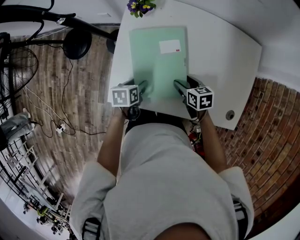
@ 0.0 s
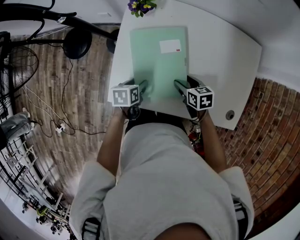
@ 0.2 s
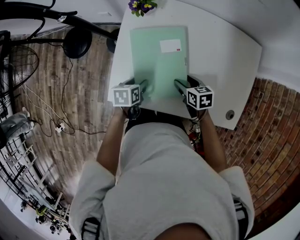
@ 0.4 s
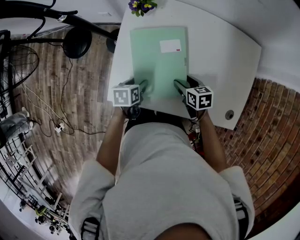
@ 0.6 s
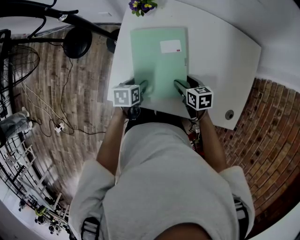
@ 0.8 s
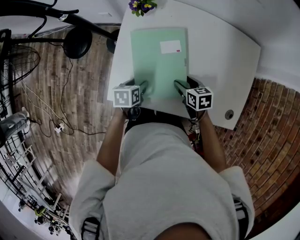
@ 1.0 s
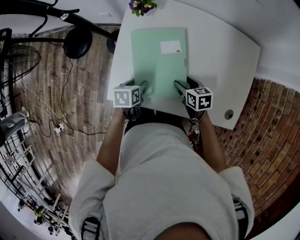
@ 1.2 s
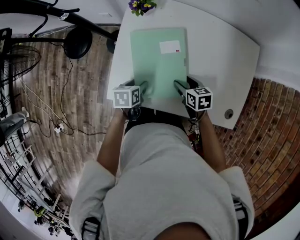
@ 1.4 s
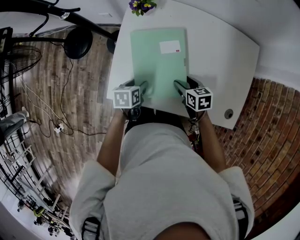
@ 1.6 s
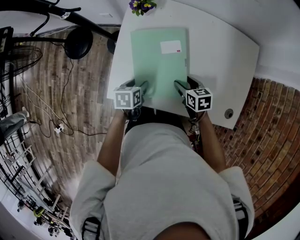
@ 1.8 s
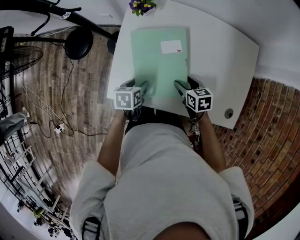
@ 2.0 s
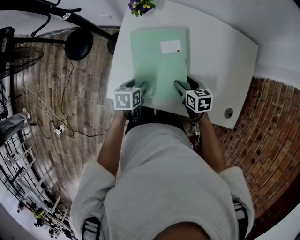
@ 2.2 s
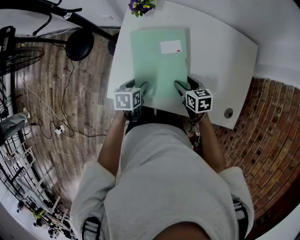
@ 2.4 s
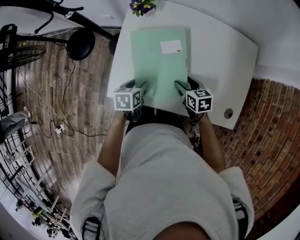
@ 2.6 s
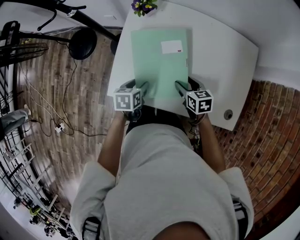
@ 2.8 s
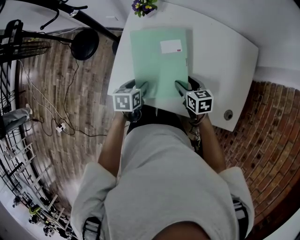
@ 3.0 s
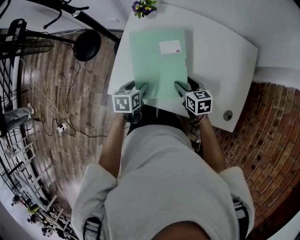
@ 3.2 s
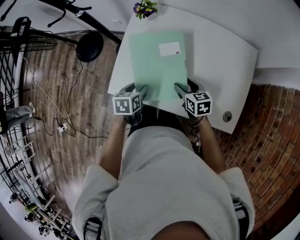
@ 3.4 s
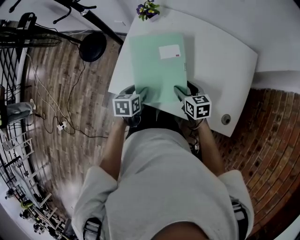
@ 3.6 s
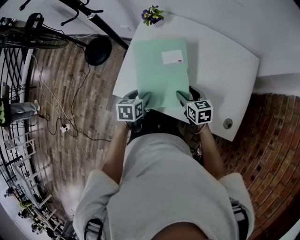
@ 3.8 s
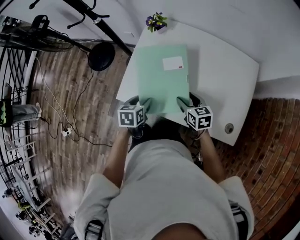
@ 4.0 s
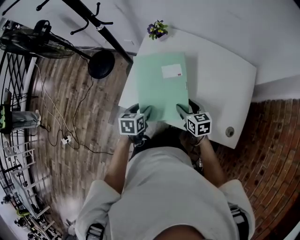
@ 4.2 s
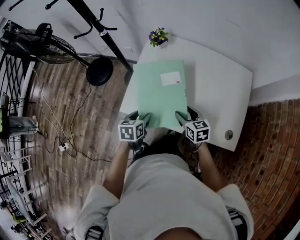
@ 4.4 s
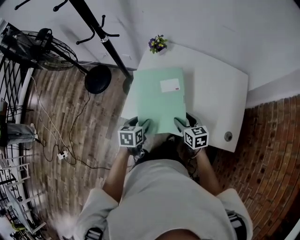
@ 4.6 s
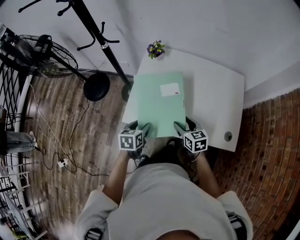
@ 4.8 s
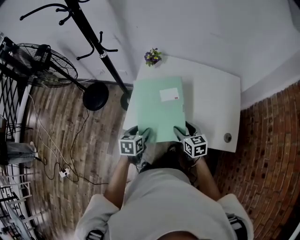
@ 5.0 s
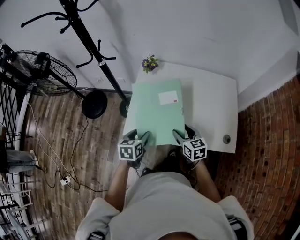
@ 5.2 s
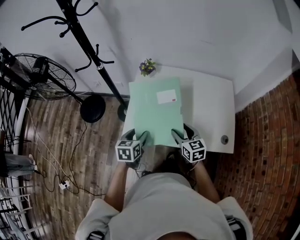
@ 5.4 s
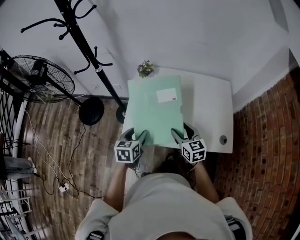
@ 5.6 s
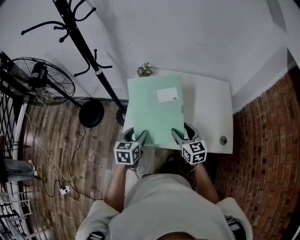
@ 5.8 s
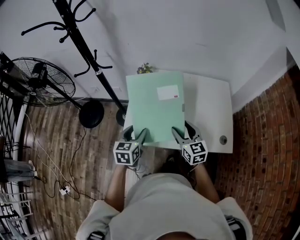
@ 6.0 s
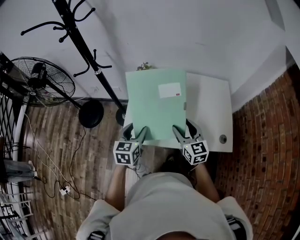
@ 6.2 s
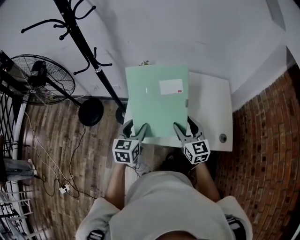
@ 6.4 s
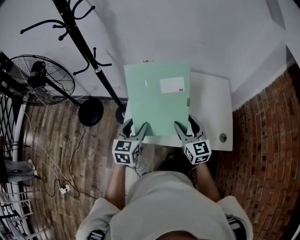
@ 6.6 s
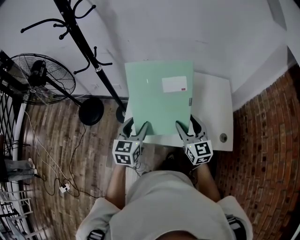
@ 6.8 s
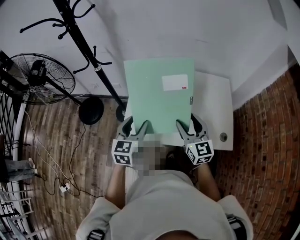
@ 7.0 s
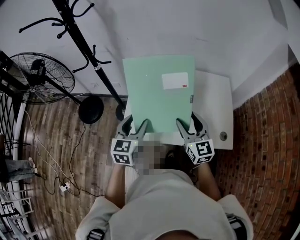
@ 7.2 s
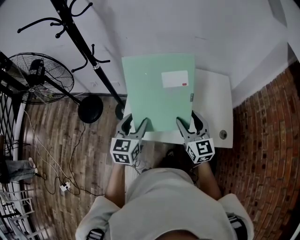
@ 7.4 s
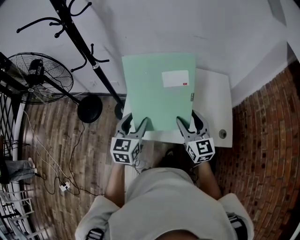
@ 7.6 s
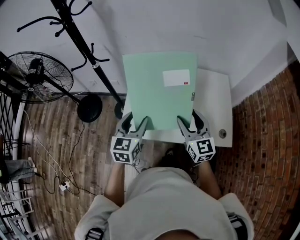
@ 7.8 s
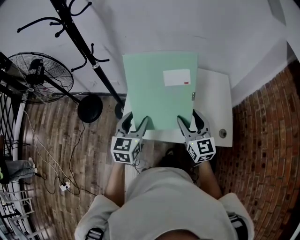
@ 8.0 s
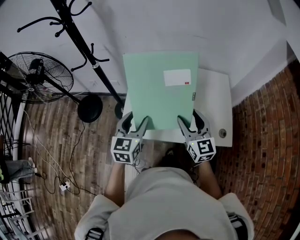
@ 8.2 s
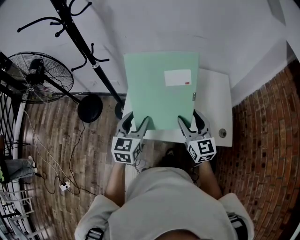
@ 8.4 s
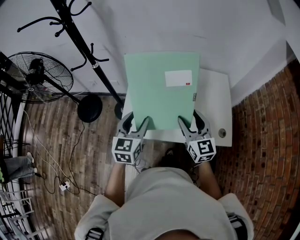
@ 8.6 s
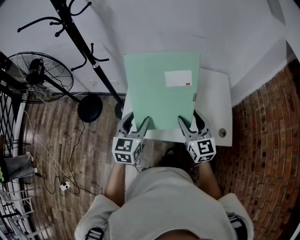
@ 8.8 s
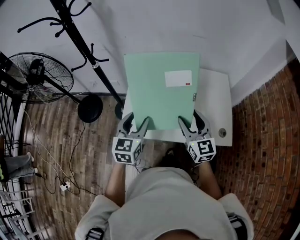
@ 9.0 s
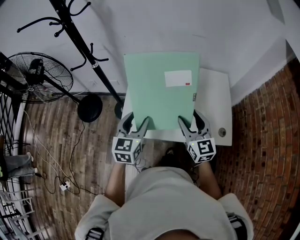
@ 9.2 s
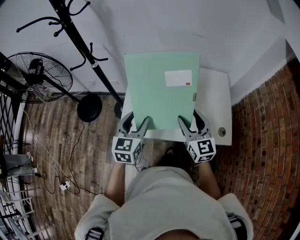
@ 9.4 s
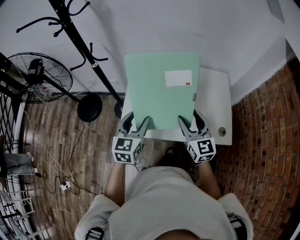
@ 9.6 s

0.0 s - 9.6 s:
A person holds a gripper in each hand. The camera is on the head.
0.0 s - 1.6 s: There are only small adjustments of the grippers.
1.6 s - 3.2 s: The left gripper shifts by approximately 5 cm.
3.2 s - 4.8 s: The right gripper shifts approximately 15 cm backward, upward and to the left. The left gripper is displaced backward, to the left and upward by roughly 10 cm.
4.8 s - 6.4 s: The two grippers go roughly 15 cm upward. The right gripper swivels about 30 degrees, while the left gripper swivels approximately 30 degrees.
6.4 s - 8.0 s: The grippers stay close to where they were, moving slightly.
8.0 s - 9.6 s: Neither gripper changes place.

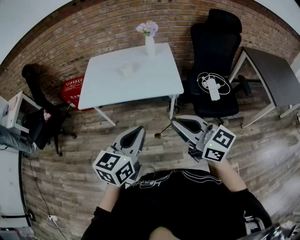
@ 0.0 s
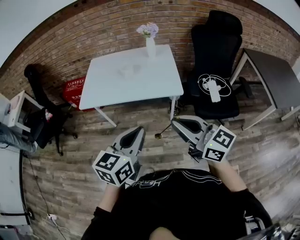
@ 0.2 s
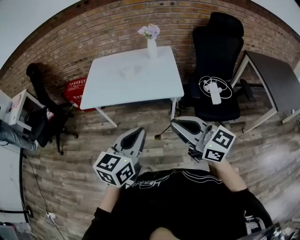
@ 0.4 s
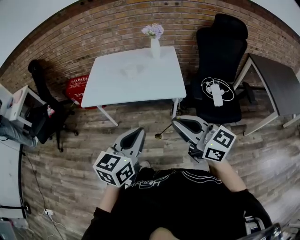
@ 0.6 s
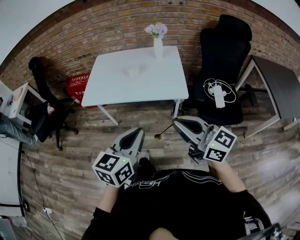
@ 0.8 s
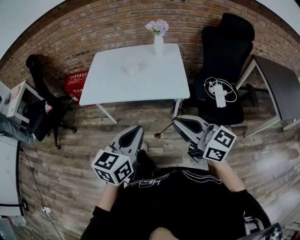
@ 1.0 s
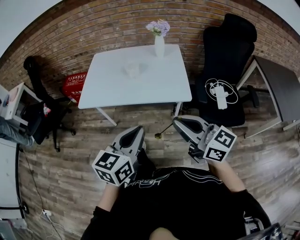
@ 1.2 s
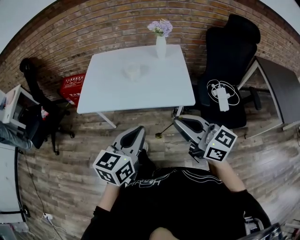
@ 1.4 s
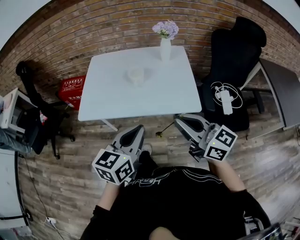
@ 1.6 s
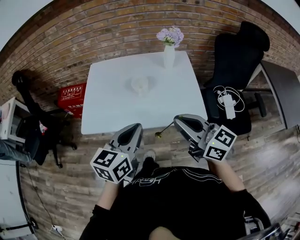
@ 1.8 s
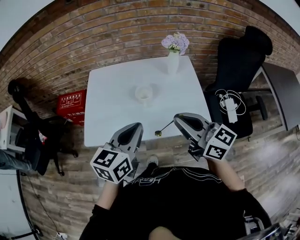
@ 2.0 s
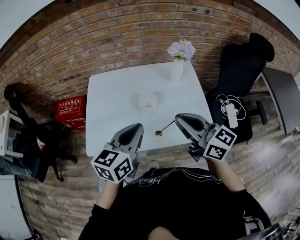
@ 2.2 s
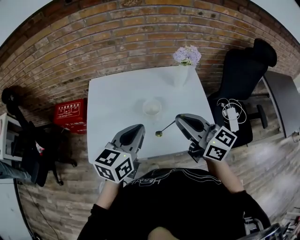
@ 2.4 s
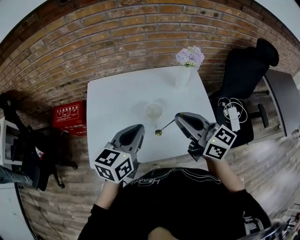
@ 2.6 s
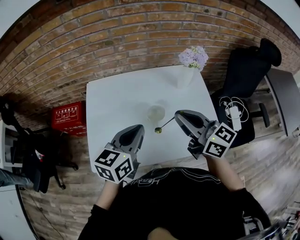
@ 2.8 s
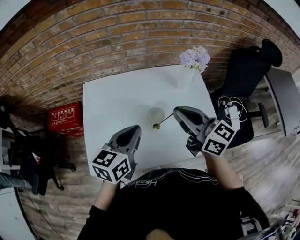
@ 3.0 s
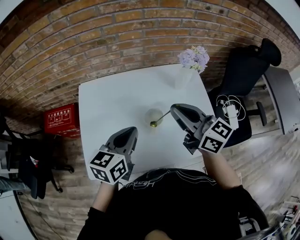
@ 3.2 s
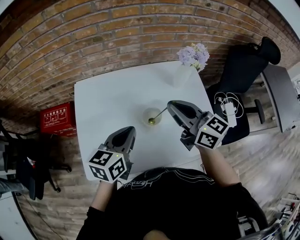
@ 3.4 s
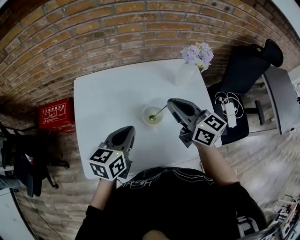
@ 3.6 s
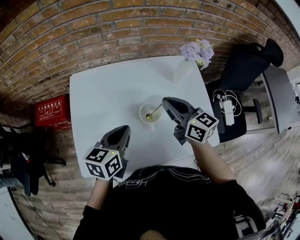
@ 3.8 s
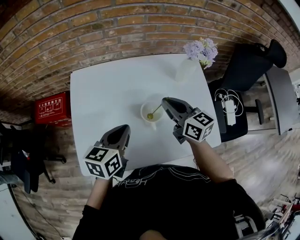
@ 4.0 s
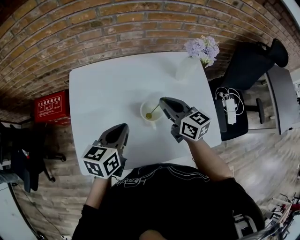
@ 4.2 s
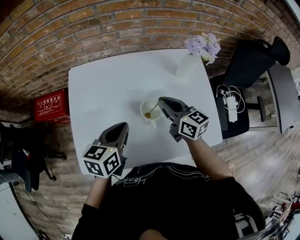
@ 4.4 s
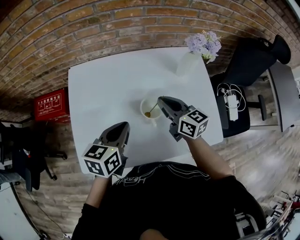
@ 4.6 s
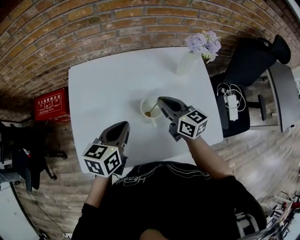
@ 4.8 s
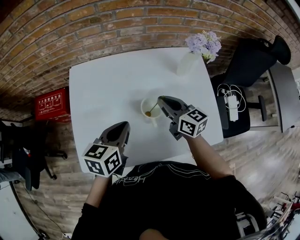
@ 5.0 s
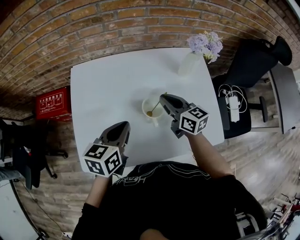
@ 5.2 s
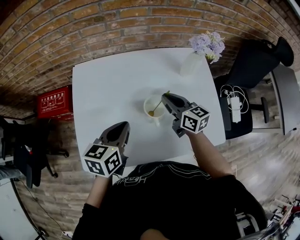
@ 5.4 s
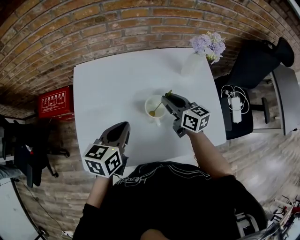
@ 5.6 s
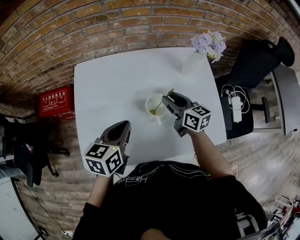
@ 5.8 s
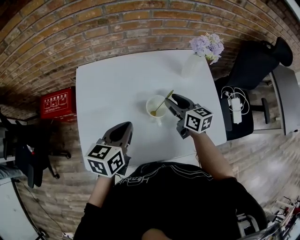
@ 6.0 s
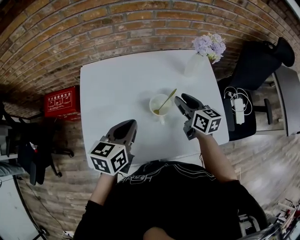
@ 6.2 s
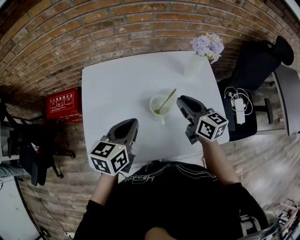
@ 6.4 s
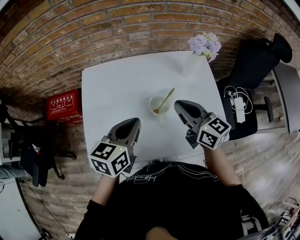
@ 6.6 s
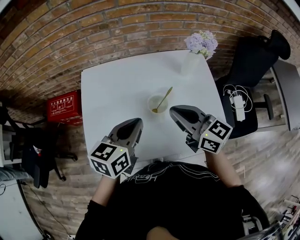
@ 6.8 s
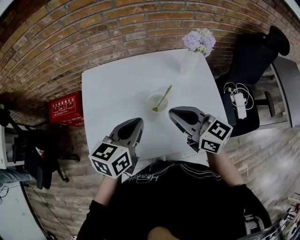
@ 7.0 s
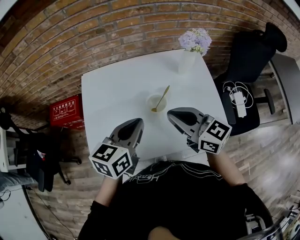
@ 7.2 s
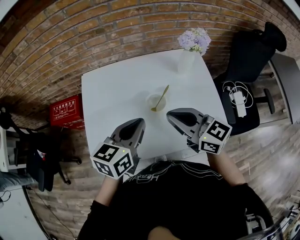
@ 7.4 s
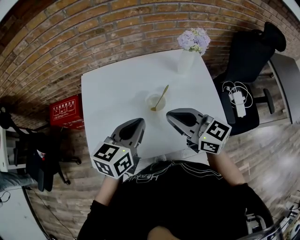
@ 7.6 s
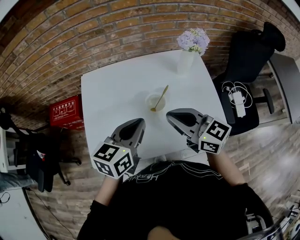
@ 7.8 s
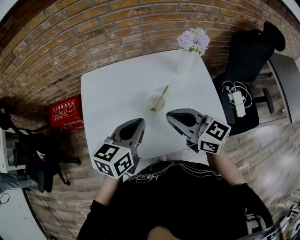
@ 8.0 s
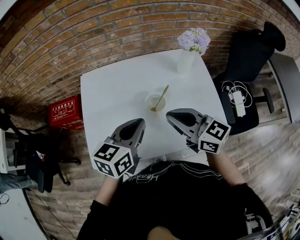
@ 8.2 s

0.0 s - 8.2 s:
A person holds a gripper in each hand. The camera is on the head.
0.0 s - 1.6 s: Both grippers travel together forward, roughly 20 cm.
1.6 s - 3.2 s: The two grippers go approximately 35 cm forward.
3.2 s - 5.0 s: The right gripper heads downward, covering approximately 15 cm. Meanwhile the left gripper travels downward by approximately 10 cm.
5.0 s - 6.6 s: The left gripper travels upward by approximately 5 cm. The right gripper moves upward and backward, some 10 cm, and opens, then closes once more.
6.6 s - 8.2 s: The right gripper is displaced backward by roughly 5 cm.

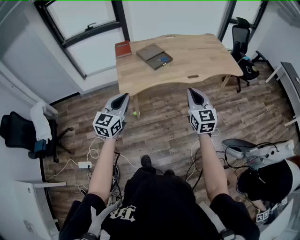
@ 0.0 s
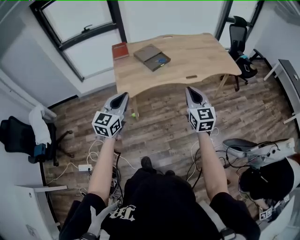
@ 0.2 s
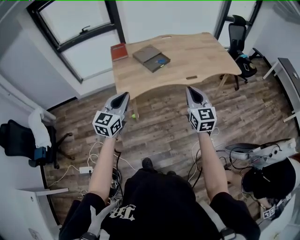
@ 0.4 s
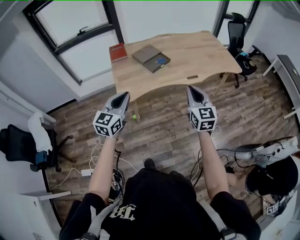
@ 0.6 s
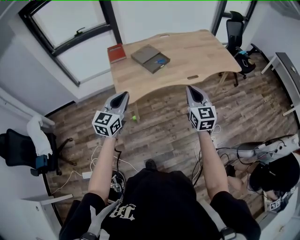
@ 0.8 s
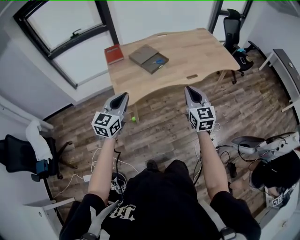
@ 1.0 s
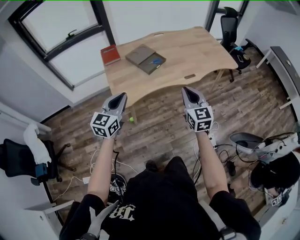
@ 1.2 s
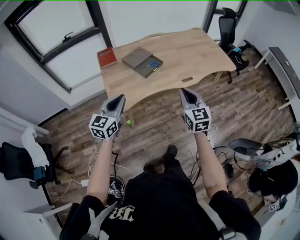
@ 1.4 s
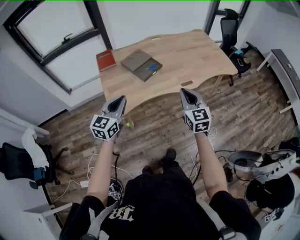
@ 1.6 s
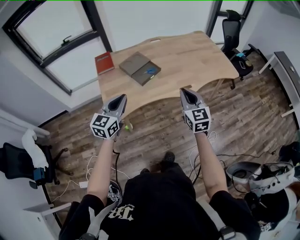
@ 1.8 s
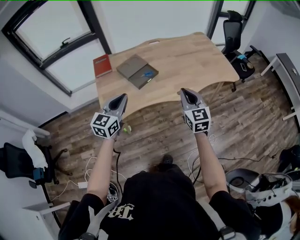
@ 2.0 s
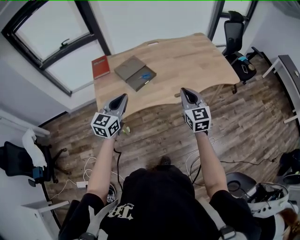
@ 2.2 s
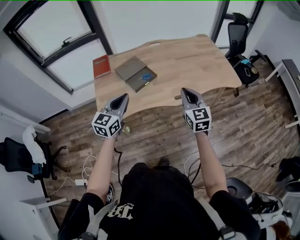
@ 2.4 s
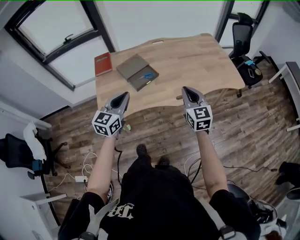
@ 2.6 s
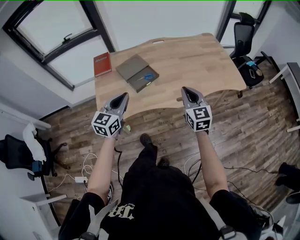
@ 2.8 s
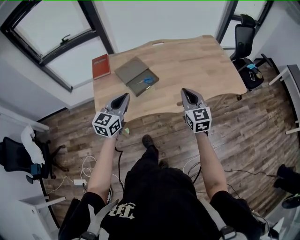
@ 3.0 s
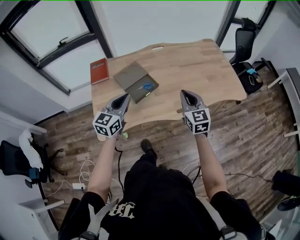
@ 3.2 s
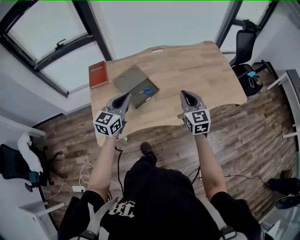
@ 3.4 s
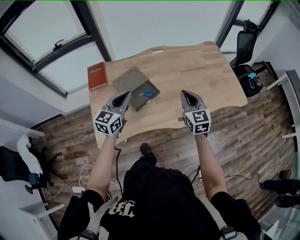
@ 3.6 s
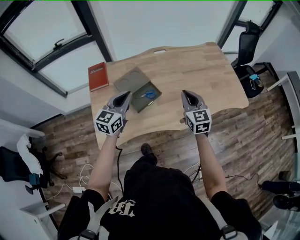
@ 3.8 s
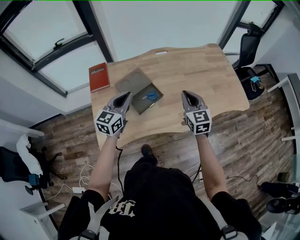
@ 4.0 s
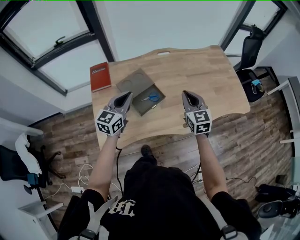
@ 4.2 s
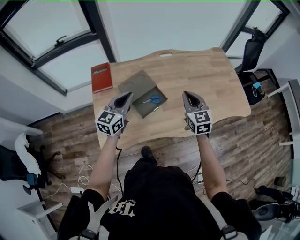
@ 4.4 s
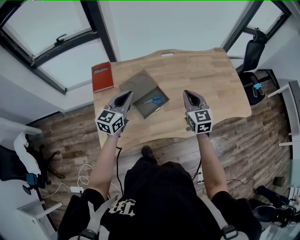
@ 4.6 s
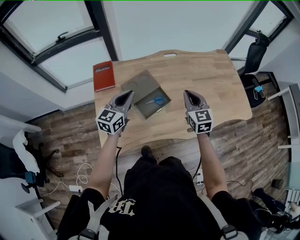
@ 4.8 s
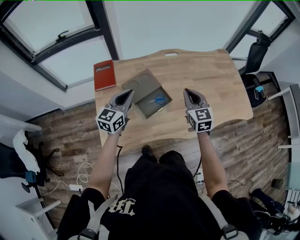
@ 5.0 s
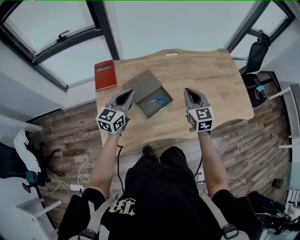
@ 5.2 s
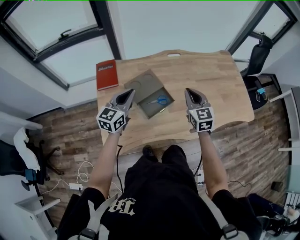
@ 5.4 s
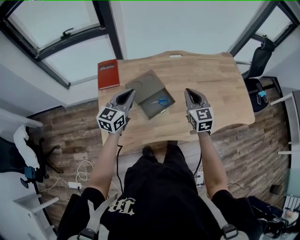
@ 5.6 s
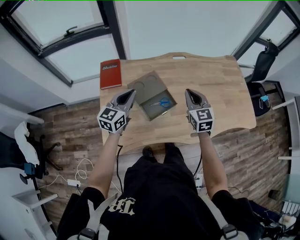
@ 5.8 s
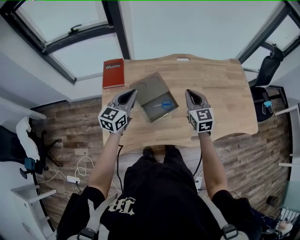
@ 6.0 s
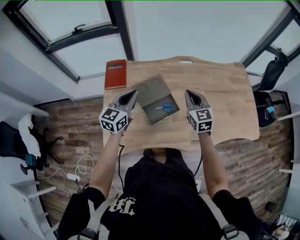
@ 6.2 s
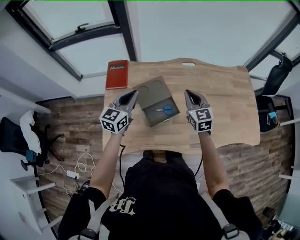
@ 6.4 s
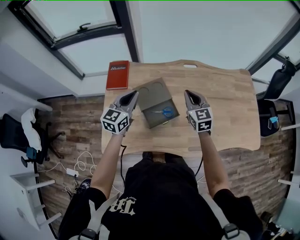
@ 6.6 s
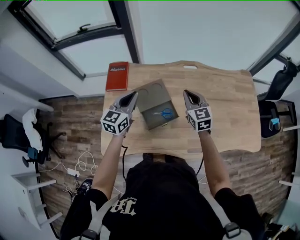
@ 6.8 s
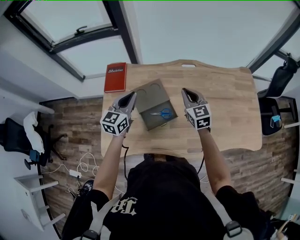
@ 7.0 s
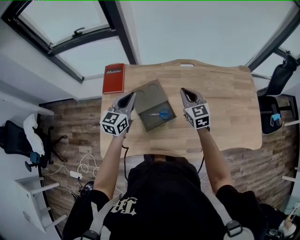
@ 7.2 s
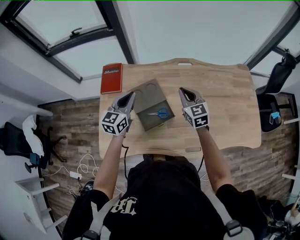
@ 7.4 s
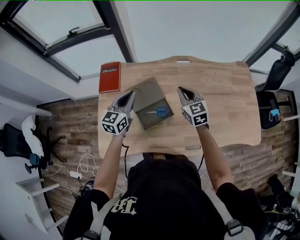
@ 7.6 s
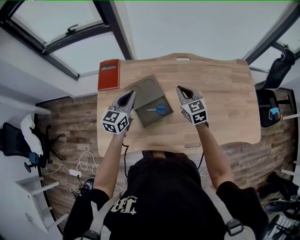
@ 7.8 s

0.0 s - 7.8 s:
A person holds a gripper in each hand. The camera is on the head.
0.0 s - 1.6 s: Both grippers move forward, roughly 15 cm.
1.6 s - 3.2 s: The left gripper heads forward and to the right, covering about 25 cm. Meanwhile the right gripper goes roughly 25 cm forward.
3.2 s - 4.6 s: Both grippers travel together forward and to the left, some 20 cm.
4.6 s - 6.2 s: The left gripper ends up some 5 cm from where it was. Meanwhile the right gripper goes approximately 10 cm forward and to the left.
6.2 s - 7.8 s: The two grippers go about 5 cm forward.
